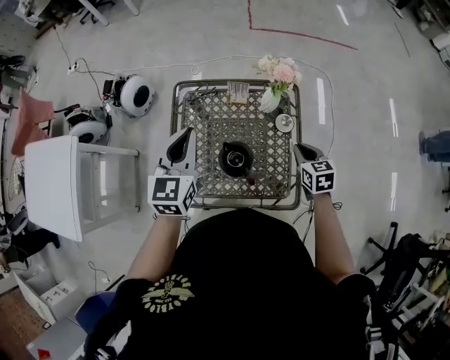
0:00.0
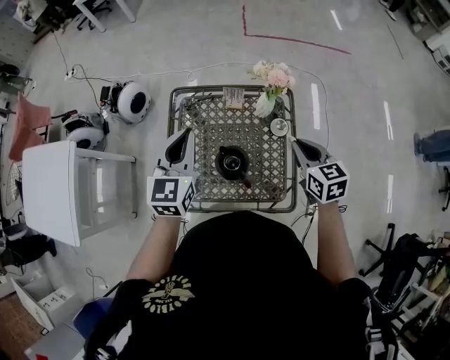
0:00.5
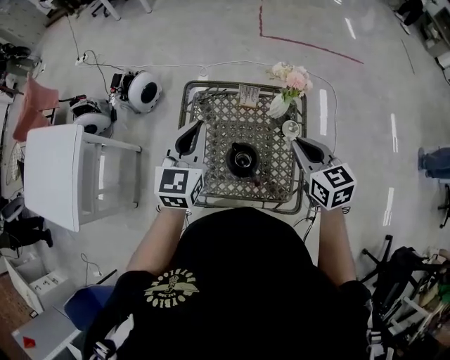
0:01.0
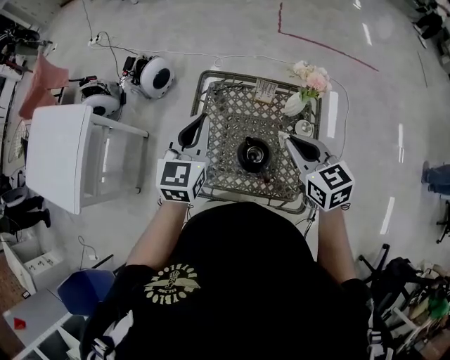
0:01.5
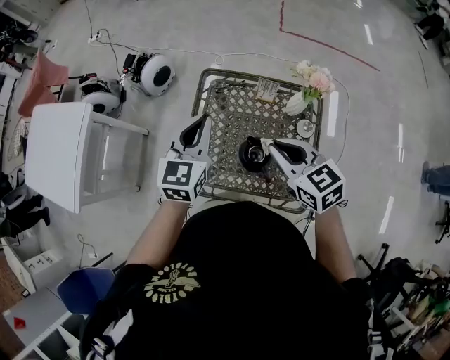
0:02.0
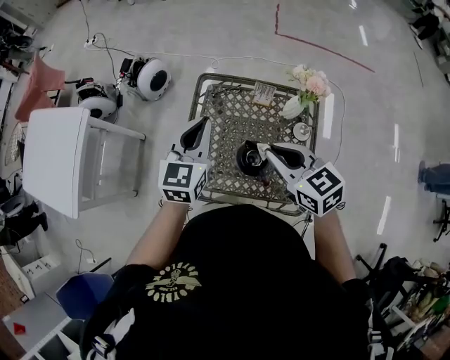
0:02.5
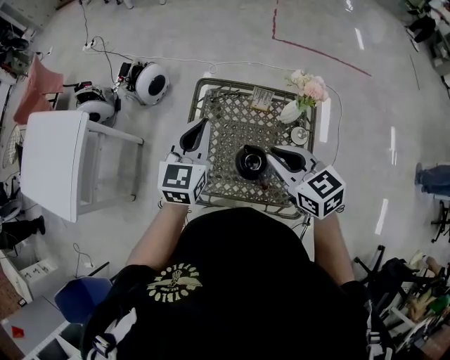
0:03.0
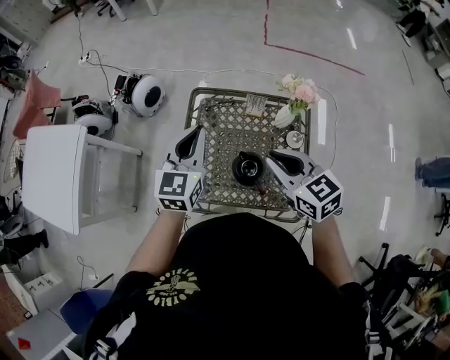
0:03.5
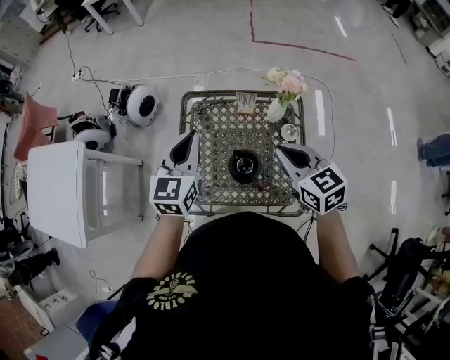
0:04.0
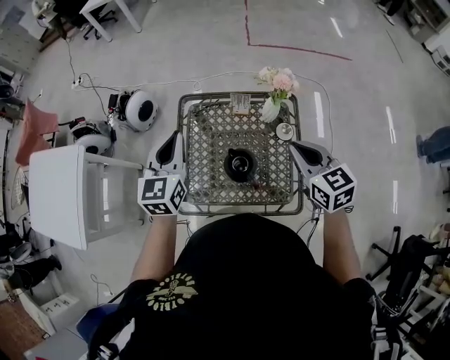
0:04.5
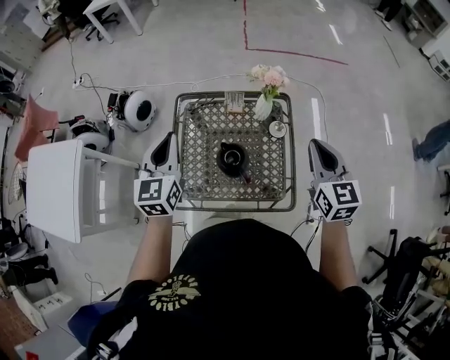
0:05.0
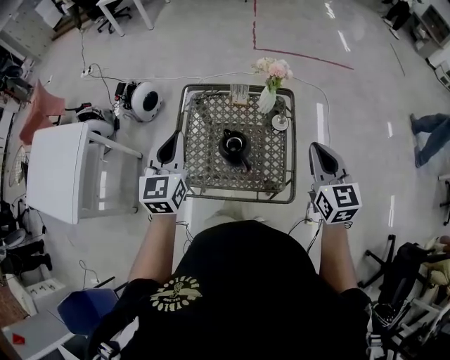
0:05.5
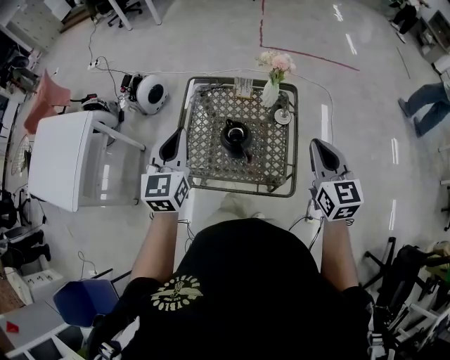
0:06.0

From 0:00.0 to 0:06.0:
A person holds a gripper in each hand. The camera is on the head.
From 0:00.0 to 0:02.0: The right gripper goes roughly 25 cm to the left and upward, and swivels about 30 degrees. Meanwhile the left gripper is displaced to the left by some 5 cm.
From 0:02.0 to 0:04.0: The right gripper shifts approximately 5 cm to the right.
From 0:04.0 to 0:06.0: The right gripper heads backward and to the right, covering about 20 cm, and swivels roughly 20 degrees. The left gripper heads backward, covering roughly 15 cm.

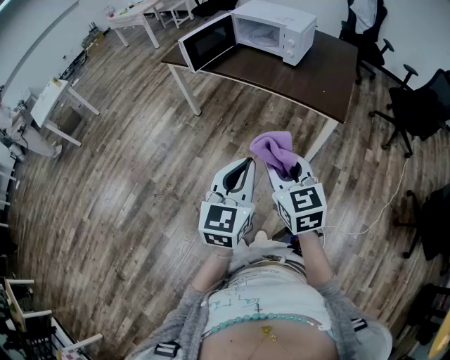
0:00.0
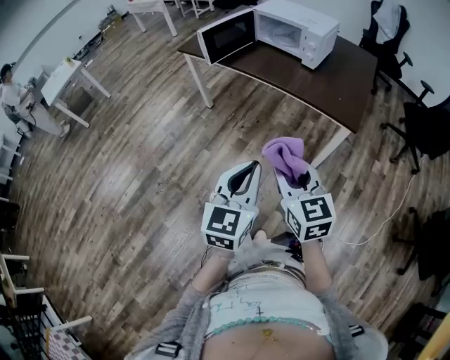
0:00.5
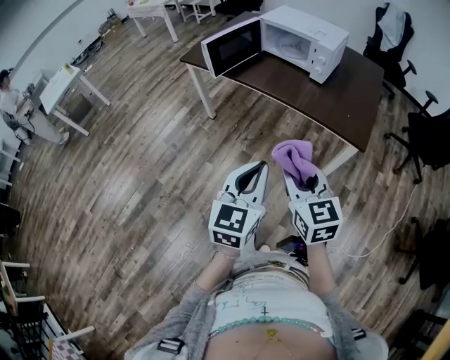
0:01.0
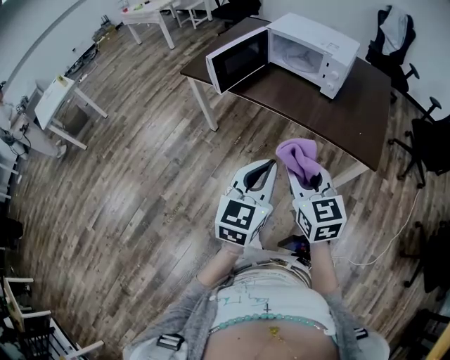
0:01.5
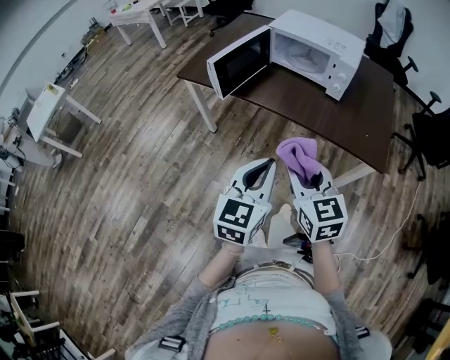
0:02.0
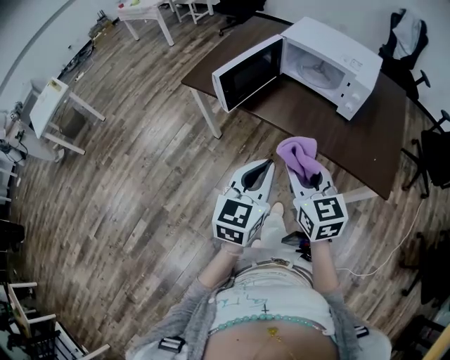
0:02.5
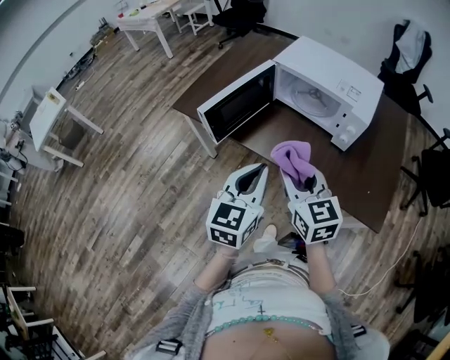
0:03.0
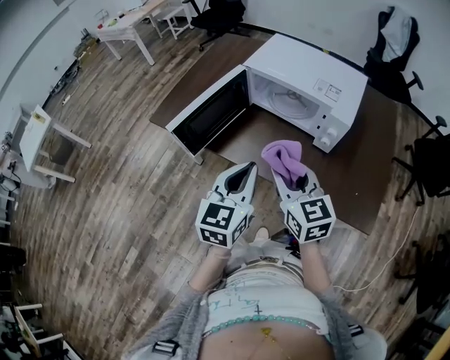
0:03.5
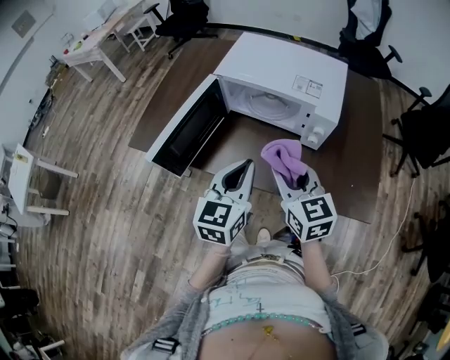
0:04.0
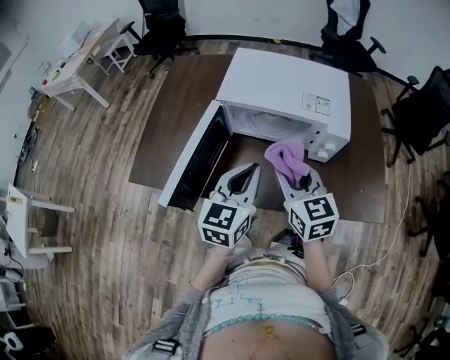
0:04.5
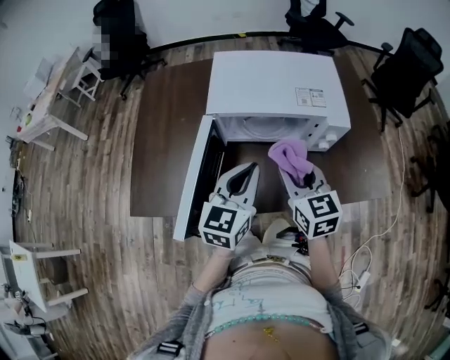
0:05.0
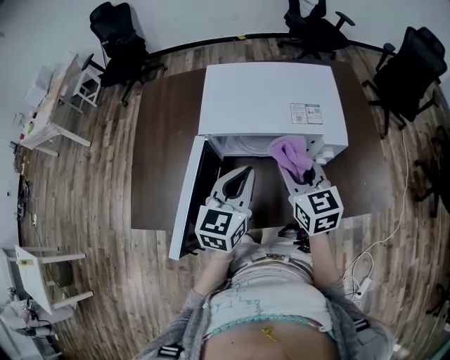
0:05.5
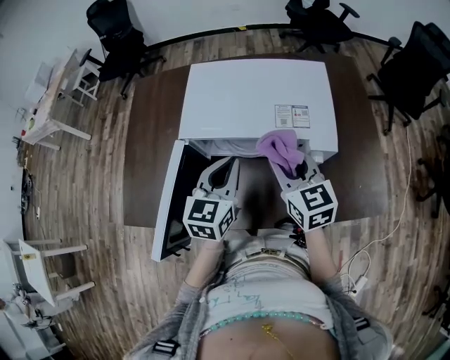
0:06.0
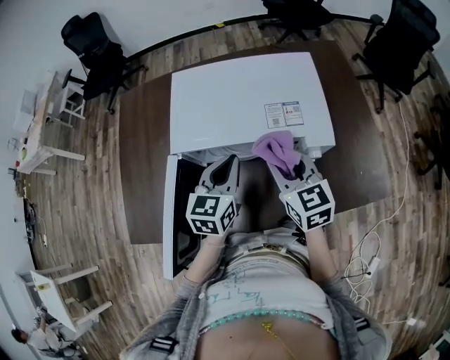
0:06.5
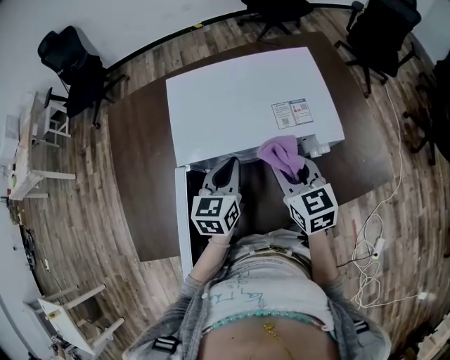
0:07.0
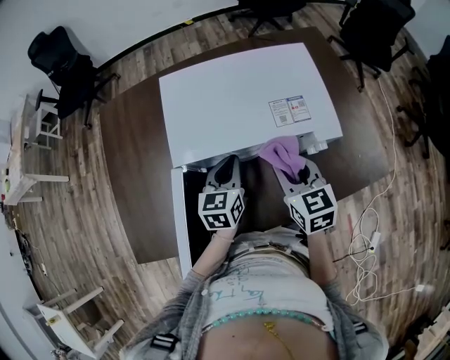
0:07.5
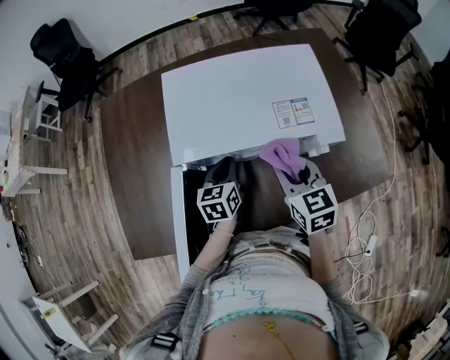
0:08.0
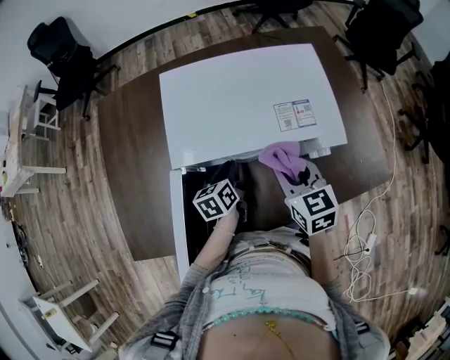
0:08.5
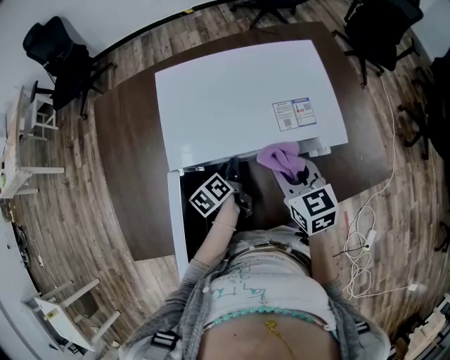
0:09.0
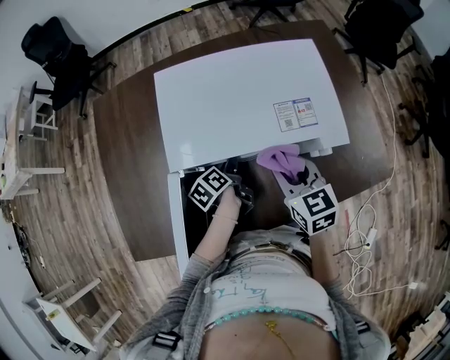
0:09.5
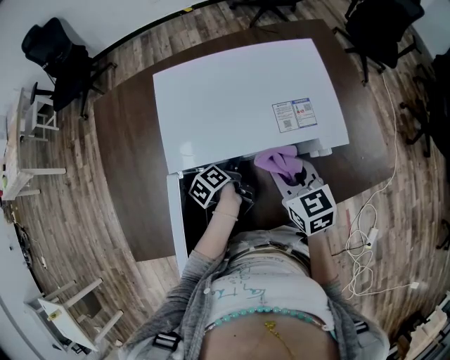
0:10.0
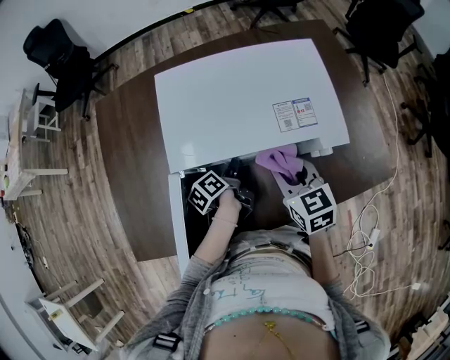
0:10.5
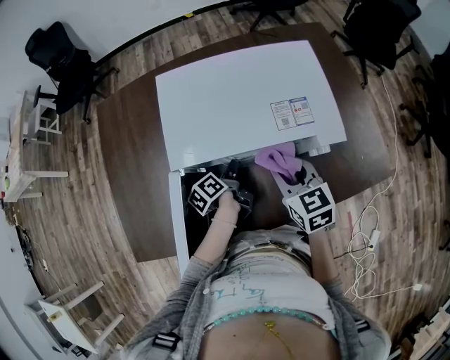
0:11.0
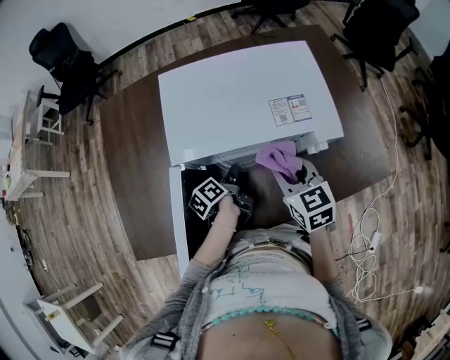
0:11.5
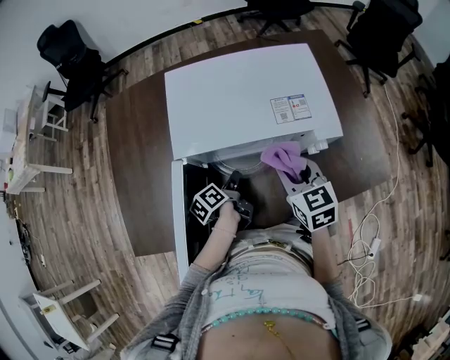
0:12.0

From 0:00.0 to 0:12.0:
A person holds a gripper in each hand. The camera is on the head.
From 0:00.0 to 0:02.0: Both grippers move forward and to the left, about 30 cm.
From 0:02.0 to 0:04.0: The two grippers go approximately 35 cm forward.
From 0:04.0 to 0:06.0: Both grippers travel together forward, about 20 cm.
From 0:06.0 to 0:08.0: The left gripper heads downward and forward, covering roughly 15 cm, and changes its angle by approximately 20 degrees, while the right gripper is displaced downward by about 5 cm.
From 0:08.0 to 0:10.0: The left gripper travels downward by some 10 cm, twists roughly 50 degrees counterclockwise, seen from behind, and opens up.
From 0:10.0 to 0:12.0: The left gripper travels backward by roughly 5 cm, and closes.

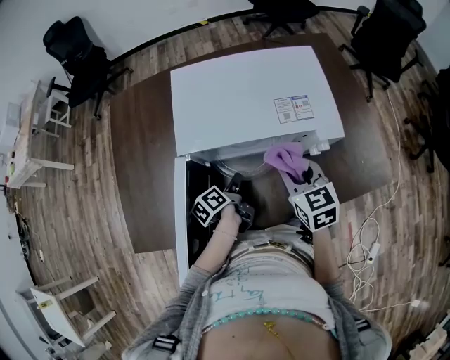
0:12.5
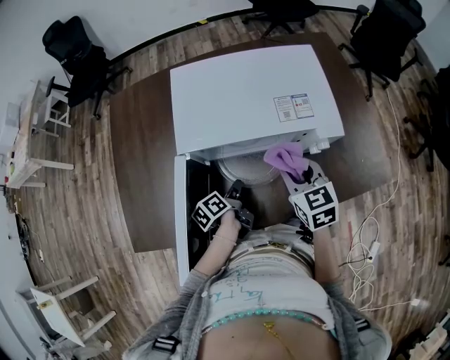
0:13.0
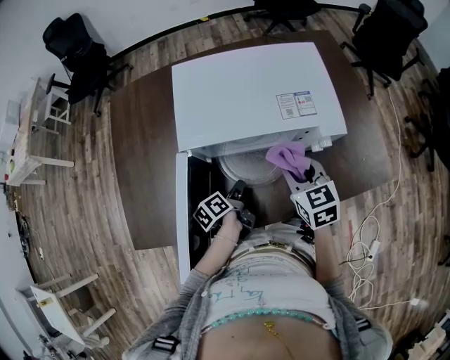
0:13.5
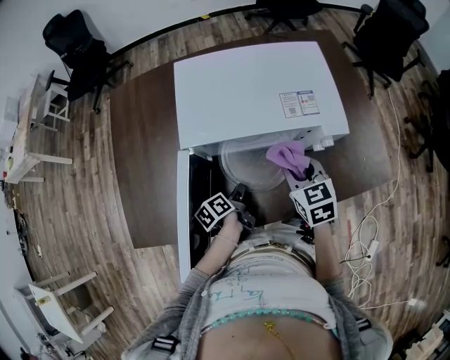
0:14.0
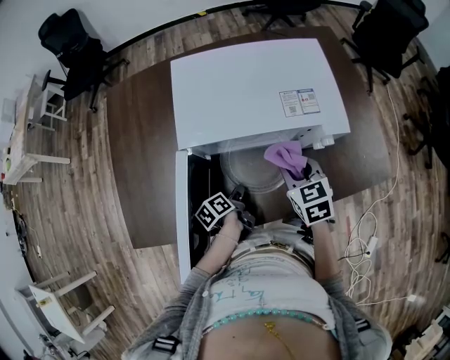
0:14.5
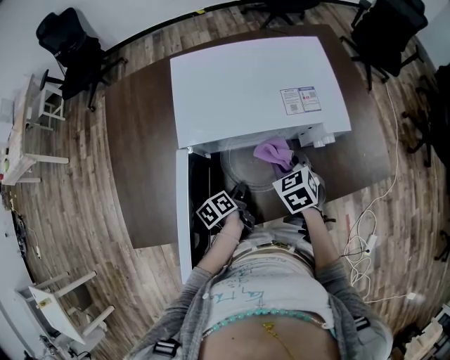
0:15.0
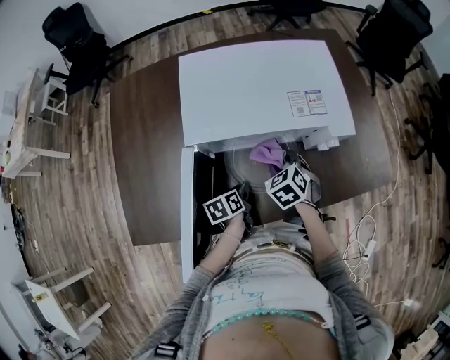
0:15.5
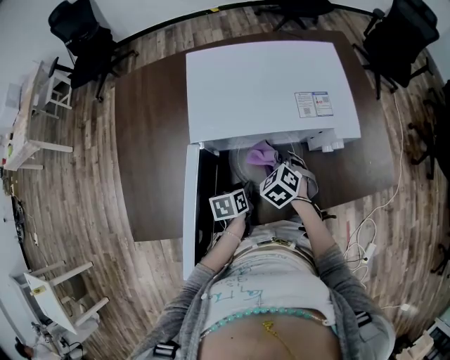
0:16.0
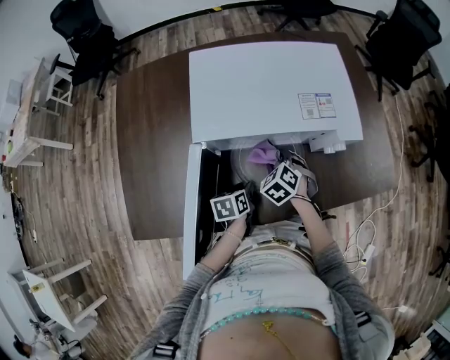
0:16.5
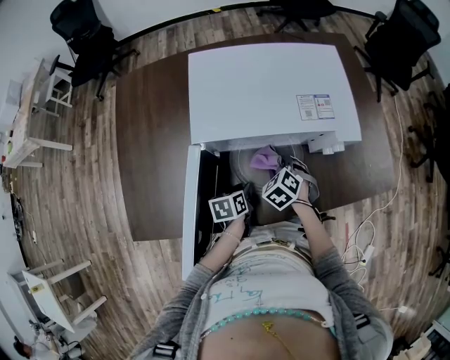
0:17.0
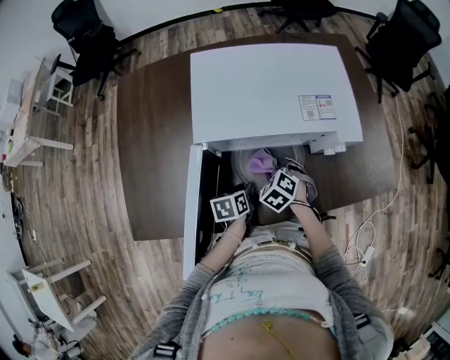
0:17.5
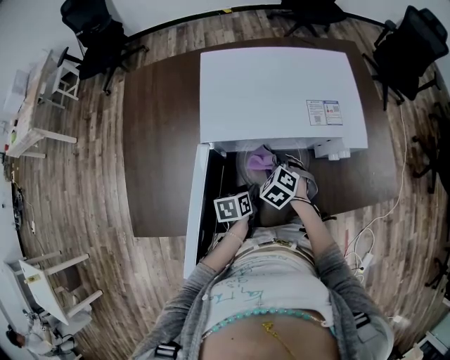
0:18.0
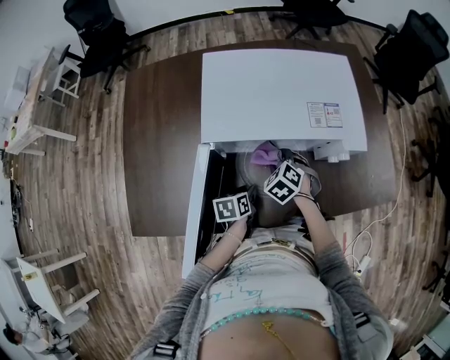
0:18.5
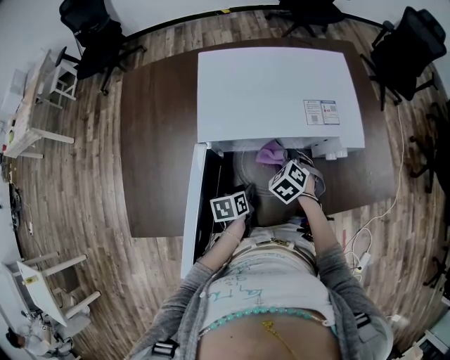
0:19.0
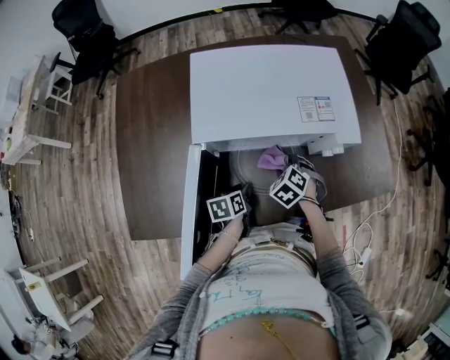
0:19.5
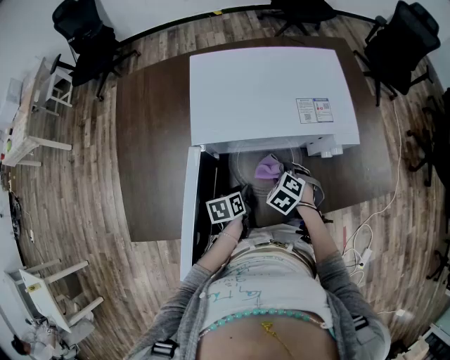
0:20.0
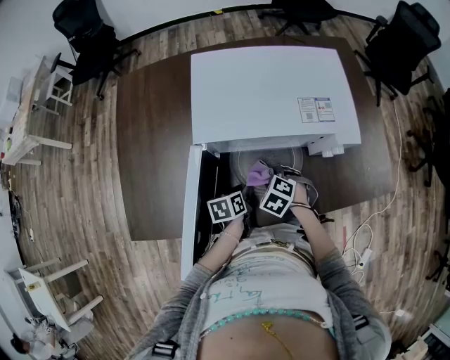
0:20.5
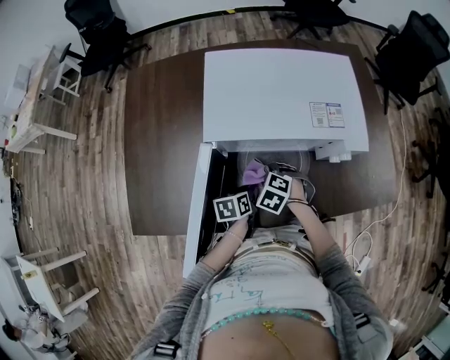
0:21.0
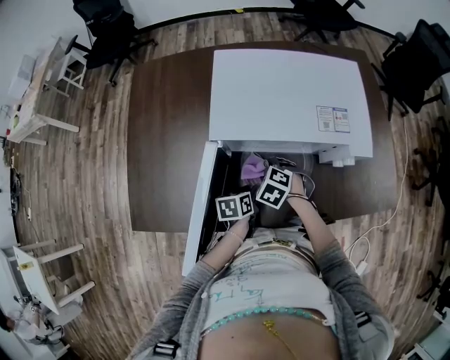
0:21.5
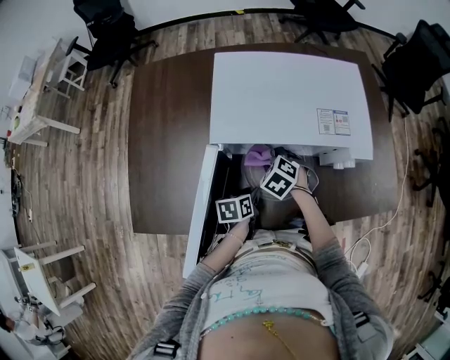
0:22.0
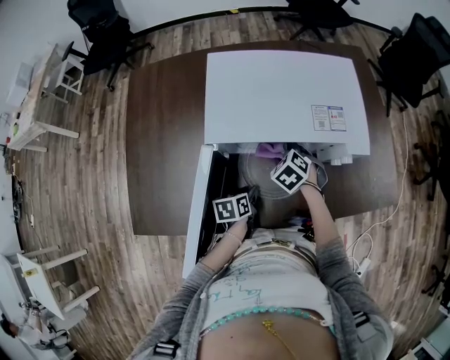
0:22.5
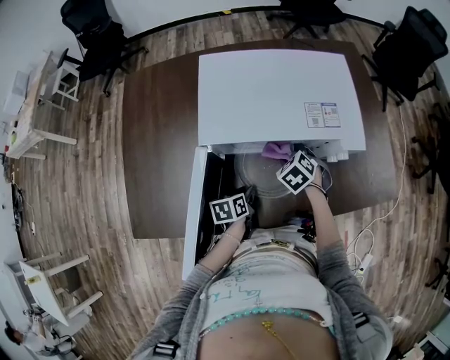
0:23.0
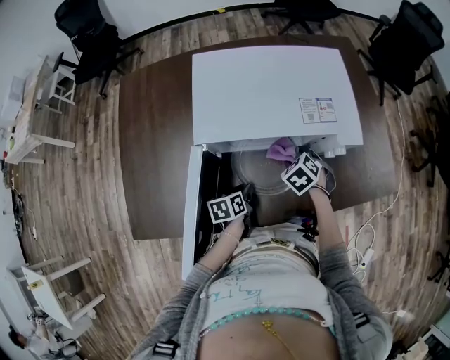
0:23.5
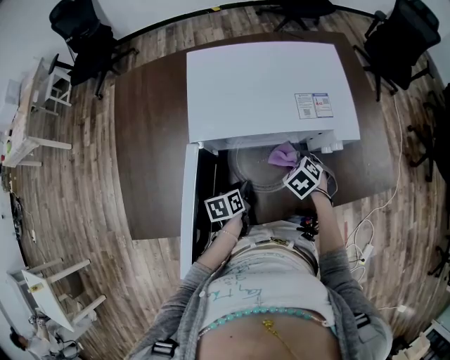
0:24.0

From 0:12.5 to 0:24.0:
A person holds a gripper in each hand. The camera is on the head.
From 0:12.5 to 0:14.5: The left gripper is displaced backward and downward by about 10 cm.
From 0:14.5 to 0:16.5: The left gripper turns by approximately 40 degrees. Meanwhile the right gripper moves downward and to the left, some 15 cm, and turns by about 30 degrees.
From 0:16.5 to 0:18.5: The grippers stay close to where they were, moving slightly.
From 0:18.5 to 0:20.0: The right gripper moves approximately 5 cm.
From 0:20.0 to 0:22.0: The right gripper goes roughly 10 cm to the left and forward.
From 0:22.0 to 0:24.0: The right gripper is displaced to the right by approximately 15 cm.
